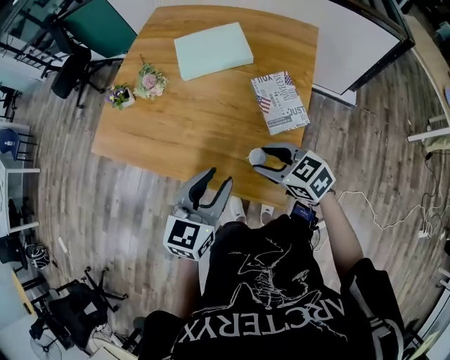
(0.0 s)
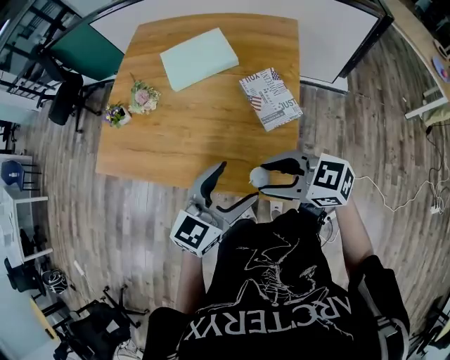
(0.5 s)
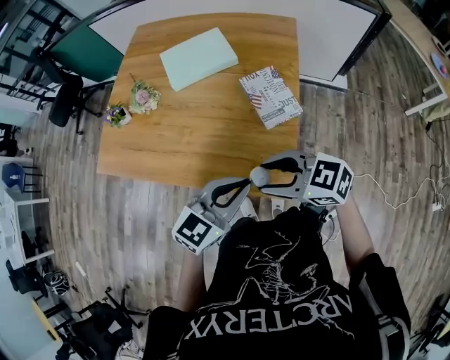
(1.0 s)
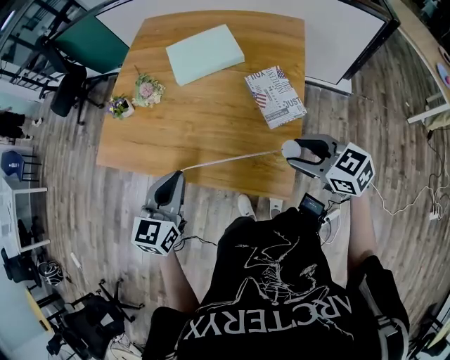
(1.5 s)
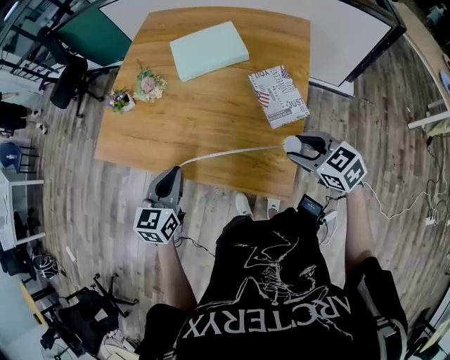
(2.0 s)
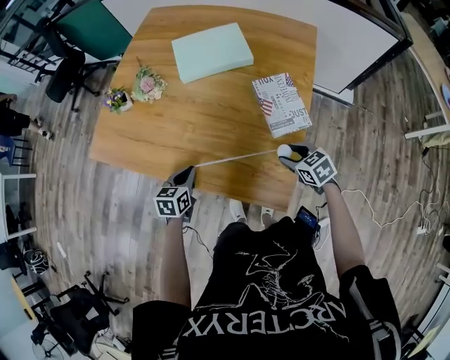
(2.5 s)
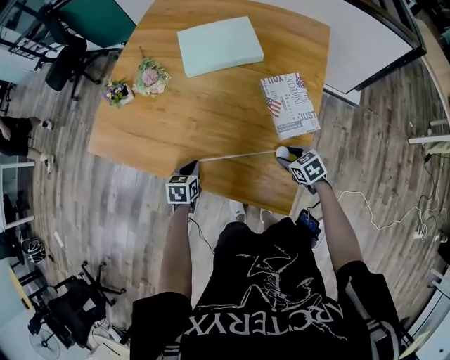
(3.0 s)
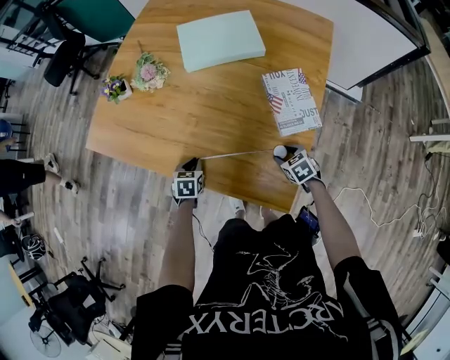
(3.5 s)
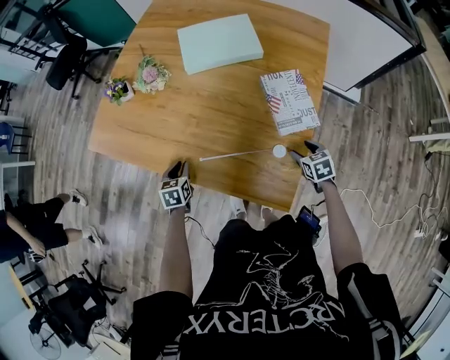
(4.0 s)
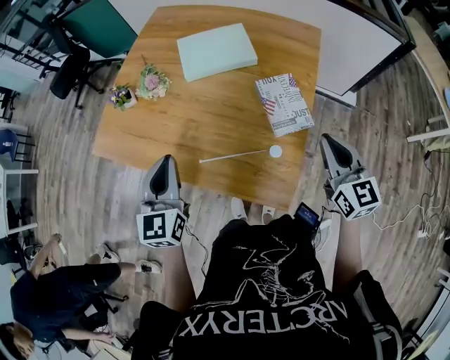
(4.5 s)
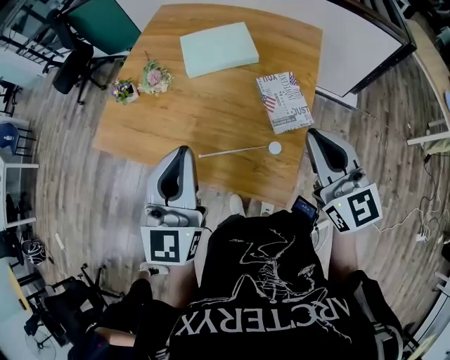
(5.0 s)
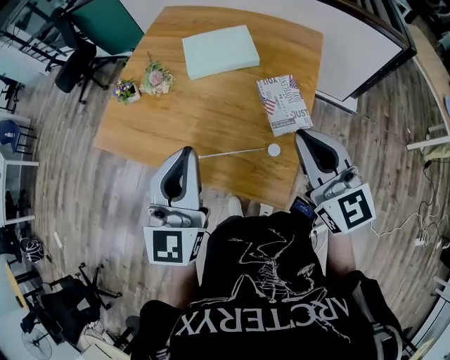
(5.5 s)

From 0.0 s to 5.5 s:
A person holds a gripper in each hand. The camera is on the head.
From 0.0 s to 2.0 s: The left gripper moves about 15 cm, and opens, then closes once more; the right gripper goes upward and returns, some 10 cm each way.
From 2.0 s to 3.5 s: The grippers both shift downward by some 25 cm. The right gripper turns by approximately 20 degrees; the left gripper tilts its fingers approximately 30 degrees downward.
From 3.5 s to 5.5 s: The two grippers go approximately 50 cm upward. The right gripper tilts its fingers approximately 60 degrees upward, and closes, while the left gripper tilts its fingers approximately 60 degrees upward.

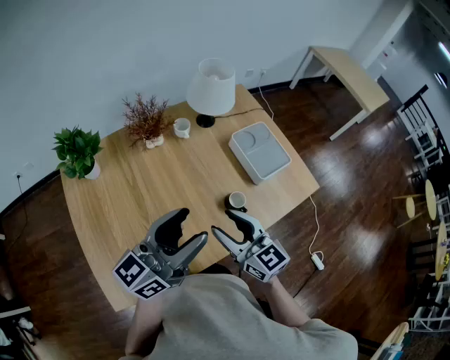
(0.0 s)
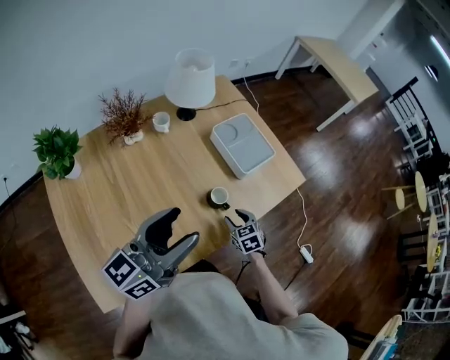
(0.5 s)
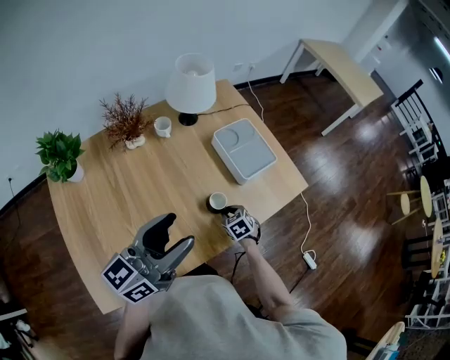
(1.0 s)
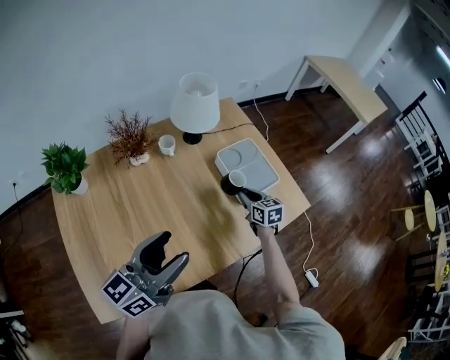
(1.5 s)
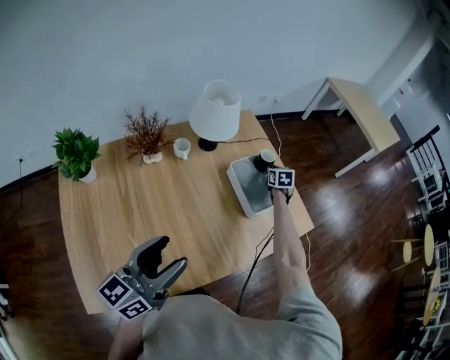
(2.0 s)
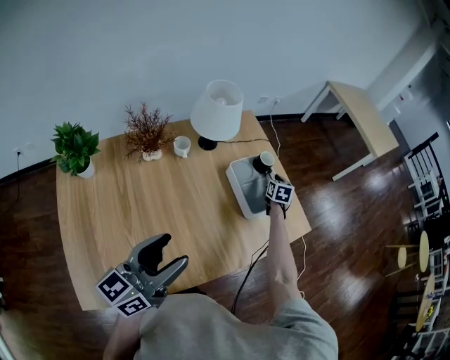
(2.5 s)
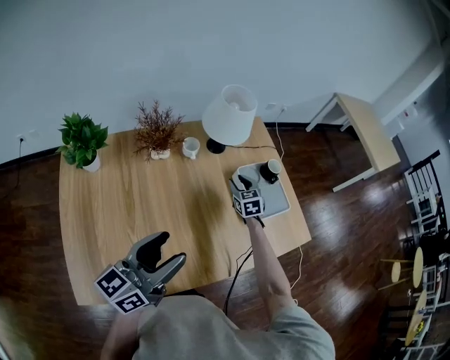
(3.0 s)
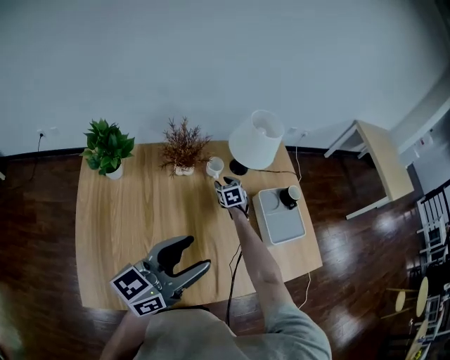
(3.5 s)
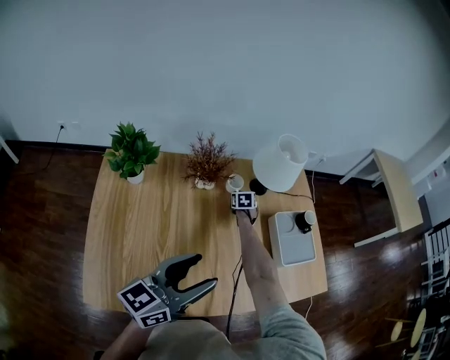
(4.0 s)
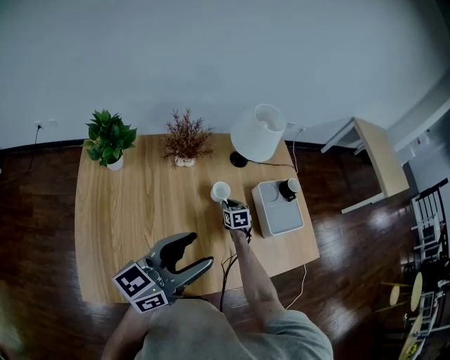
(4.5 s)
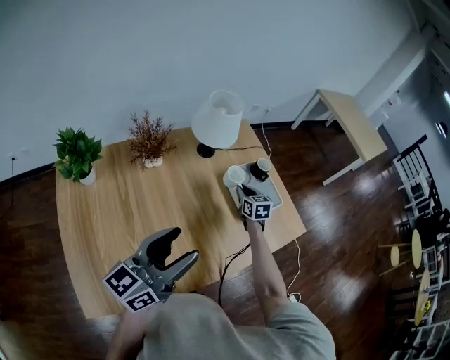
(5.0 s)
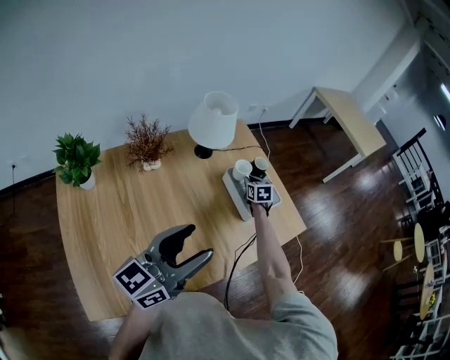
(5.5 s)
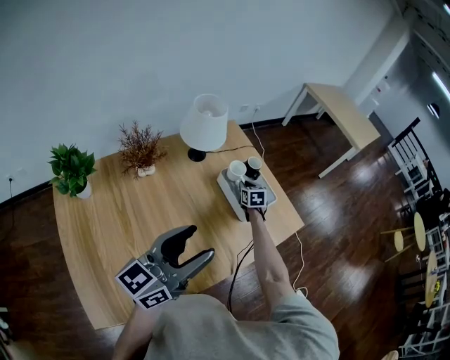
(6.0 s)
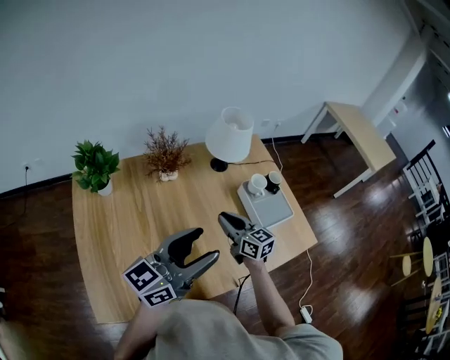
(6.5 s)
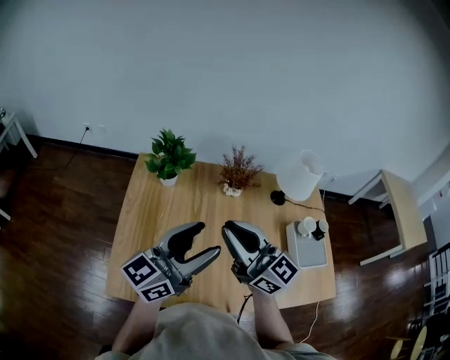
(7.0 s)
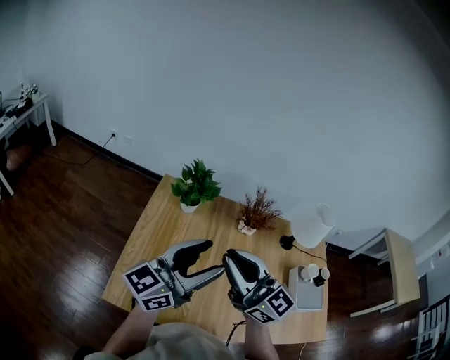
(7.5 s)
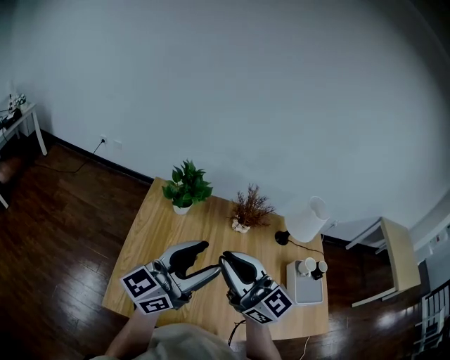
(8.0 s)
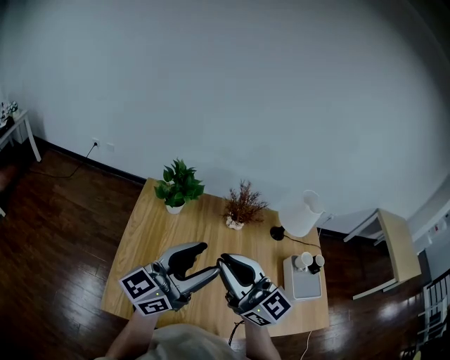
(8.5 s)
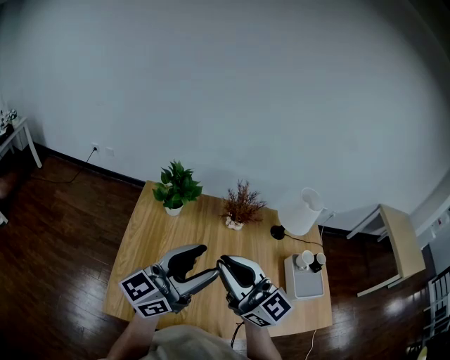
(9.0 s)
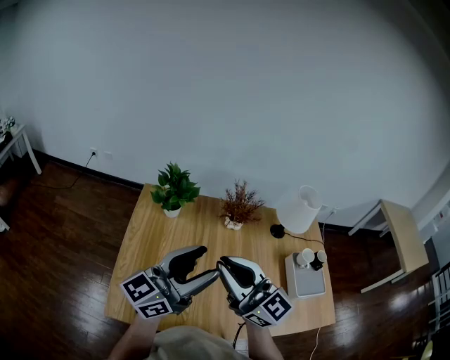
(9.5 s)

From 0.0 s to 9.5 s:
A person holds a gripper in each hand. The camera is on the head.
From 0.0 s to 2.0 s: The right gripper is displaced forward, to the right and downward by approximately 60 cm, tilts its fingers roughly 30 degrees downward, and closes its fingers.
From 2.0 s to 4.0 s: The left gripper goes some 5 cm to the left; the right gripper moves to the left, about 40 cm, swivels approximately 20 degrees, and opens, then closes again.
From 4.0 s to 5.5 s: The left gripper travels to the right by approximately 10 cm, while the right gripper is displaced to the right by approximately 30 cm.
From 5.5 s to 7.5 s: The right gripper moves roughly 70 cm, and angles its fingers upward, by approximately 50 degrees; the left gripper shifts by some 25 cm, and changes its angle by some 30 degrees.
From 7.5 s to 9.5 s: There are only small adjustments of the grippers.

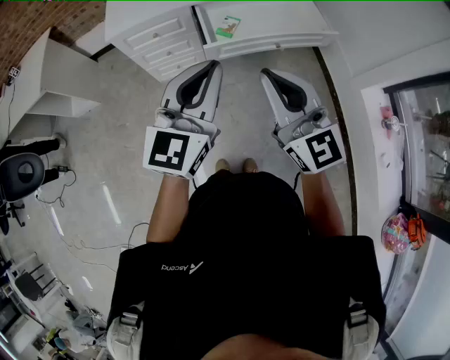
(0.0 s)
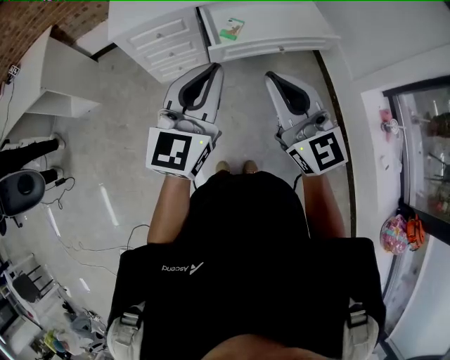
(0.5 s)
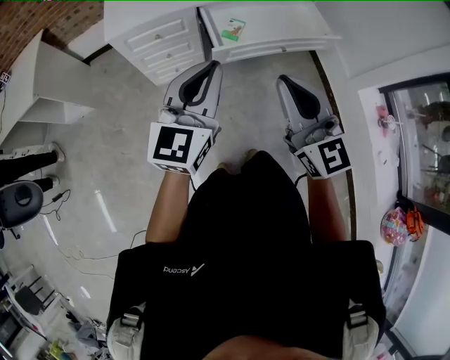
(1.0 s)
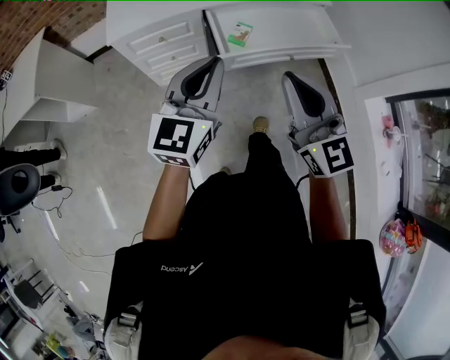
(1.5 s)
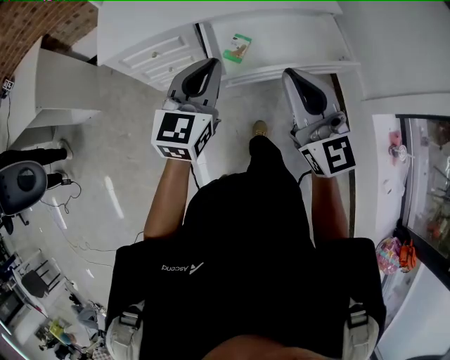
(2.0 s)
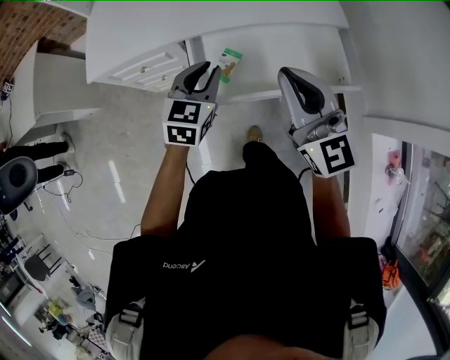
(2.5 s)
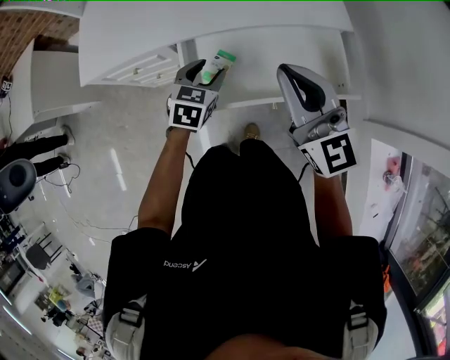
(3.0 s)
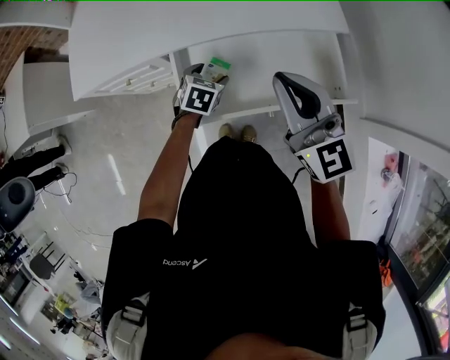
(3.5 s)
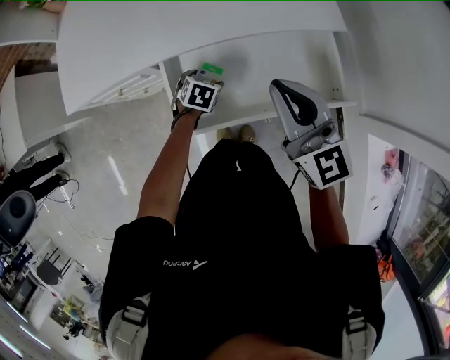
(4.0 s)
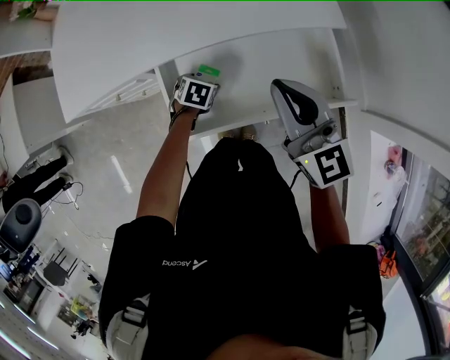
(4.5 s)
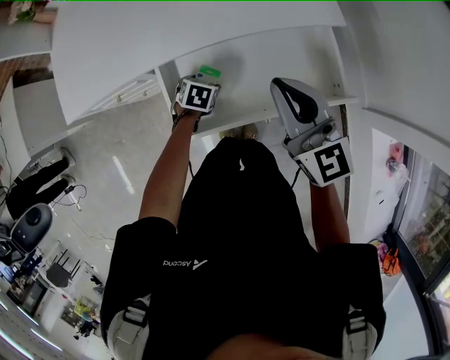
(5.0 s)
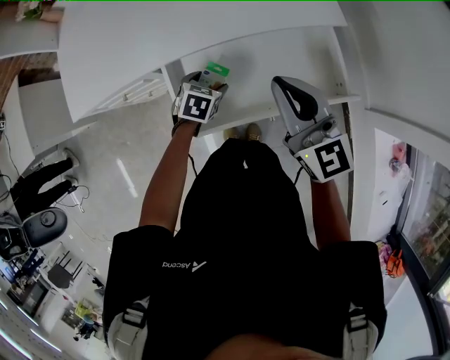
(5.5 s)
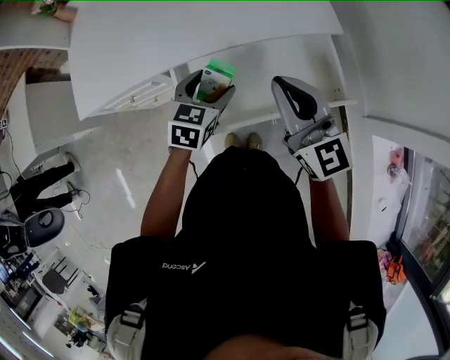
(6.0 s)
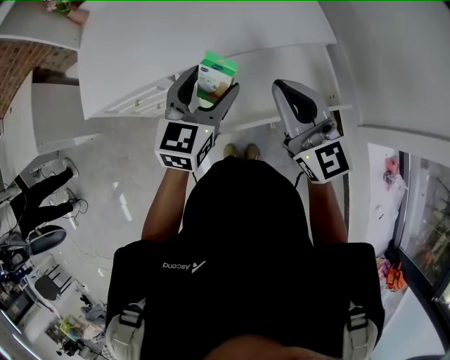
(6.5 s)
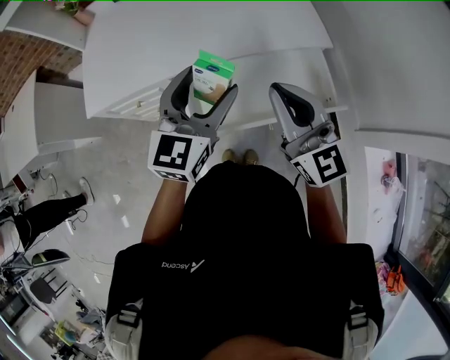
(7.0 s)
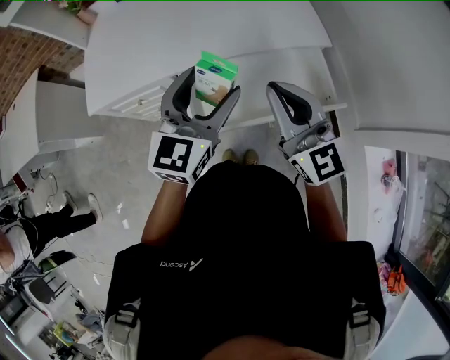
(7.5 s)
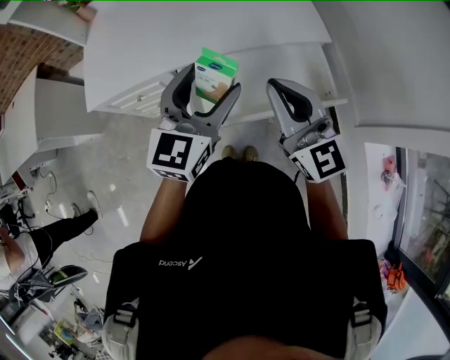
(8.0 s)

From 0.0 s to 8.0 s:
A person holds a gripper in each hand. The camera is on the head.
From 0.0 s to 2.0 s: The left gripper moves forward and downward, about 25 cm; the right gripper shifts approximately 20 cm forward.
From 2.0 s to 4.0 s: The left gripper moves downward and forward, approximately 40 cm, angles its fingers downward, by about 60 degrees, and opens, while the right gripper is displaced forward and to the right by about 25 cm.
From 4.0 s to 6.0 s: The left gripper goes some 20 cm upward, and rotates approximately 30 degrees.
From 6.0 s to 8.0 s: The right gripper goes approximately 10 cm backward and upward, while the left gripper moves upward, some 20 cm, and points its fingers approximately 30 degrees further upward.

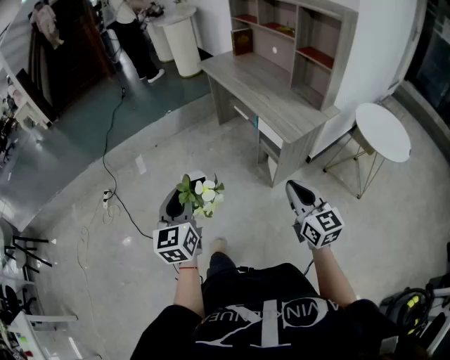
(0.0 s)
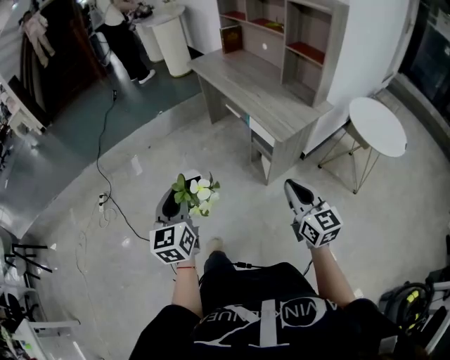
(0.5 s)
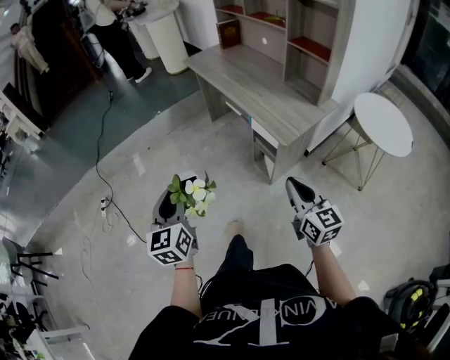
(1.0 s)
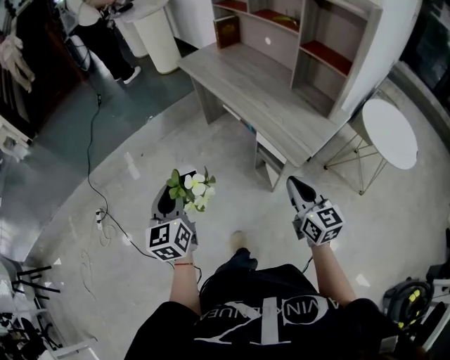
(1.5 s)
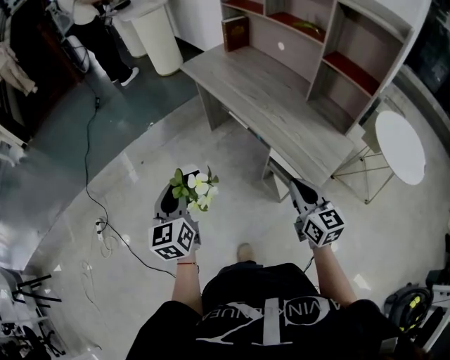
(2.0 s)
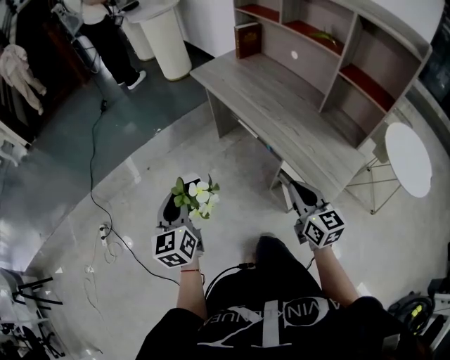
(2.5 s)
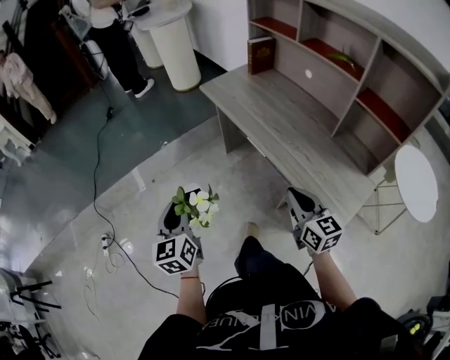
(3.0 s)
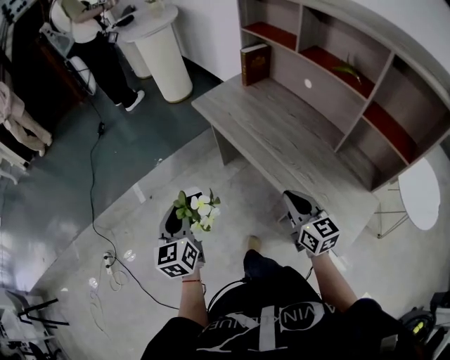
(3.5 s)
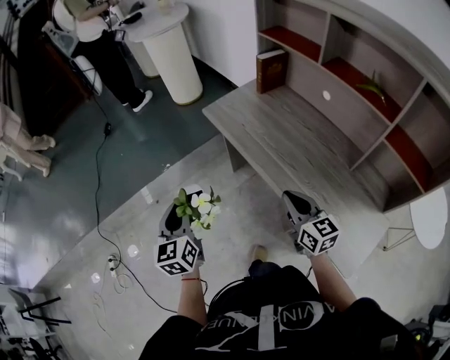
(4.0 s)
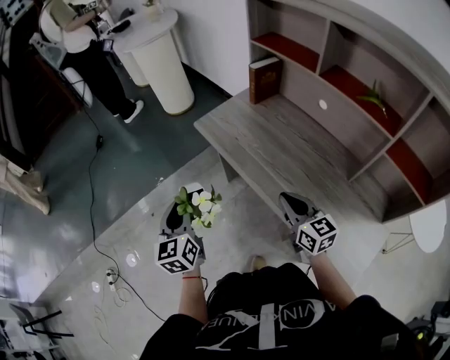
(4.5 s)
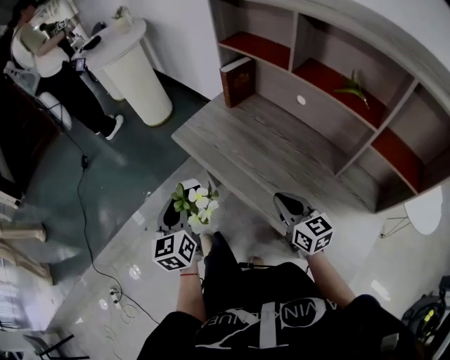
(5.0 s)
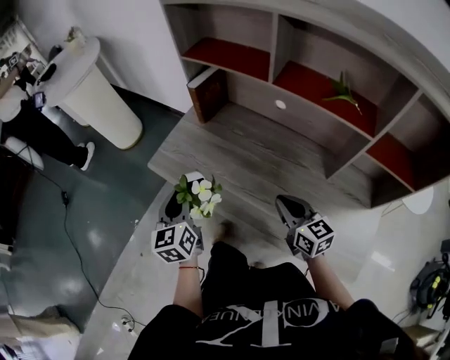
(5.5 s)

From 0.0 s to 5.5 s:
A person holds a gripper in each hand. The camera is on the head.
From 0.0 s to 2.0 s: Both grippers move forward, some 35 cm.
From 2.0 s to 3.5 s: The two grippers go approximately 25 cm forward.
From 3.5 s to 5.5 s: The right gripper is displaced forward and to the right by approximately 25 cm. Meanwhile the left gripper travels forward and to the right by about 40 cm, and rotates about 20 degrees.
